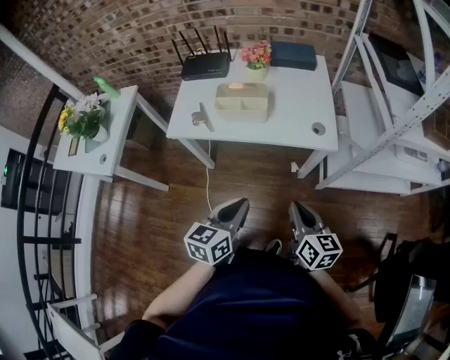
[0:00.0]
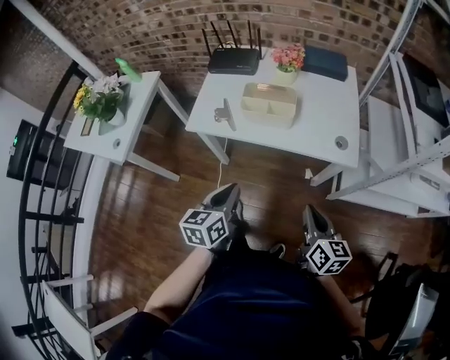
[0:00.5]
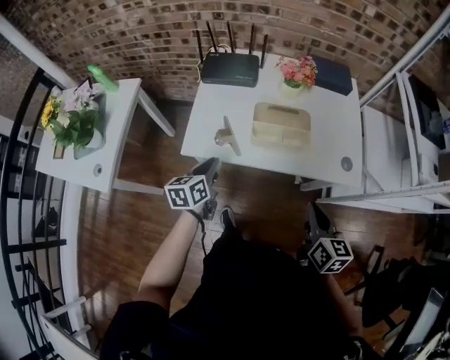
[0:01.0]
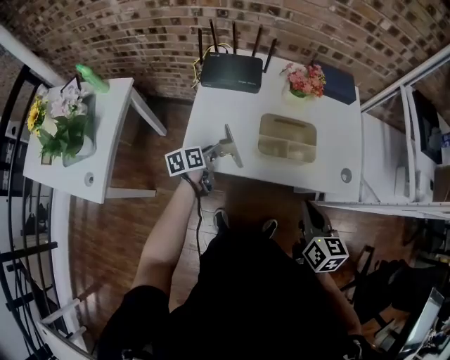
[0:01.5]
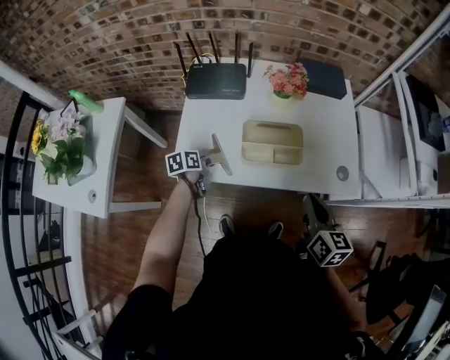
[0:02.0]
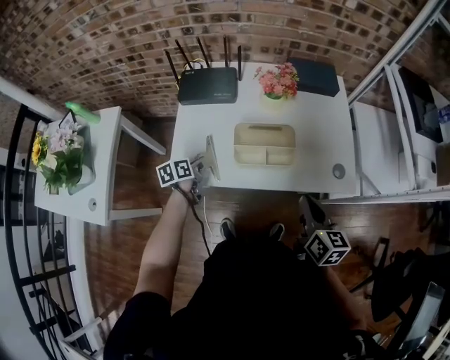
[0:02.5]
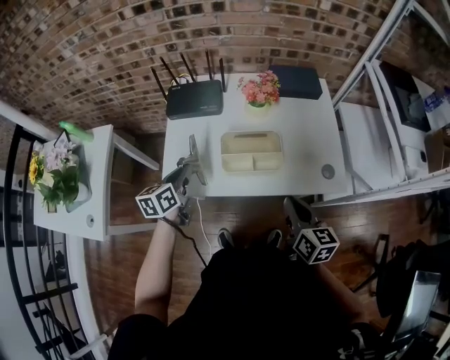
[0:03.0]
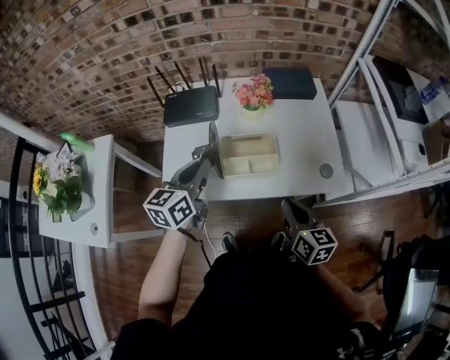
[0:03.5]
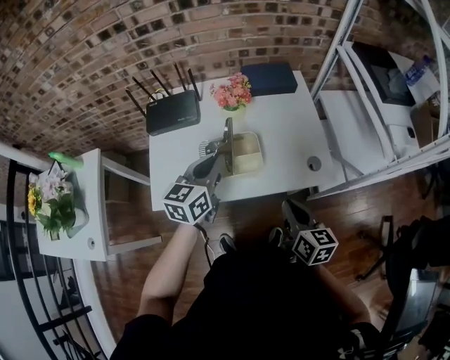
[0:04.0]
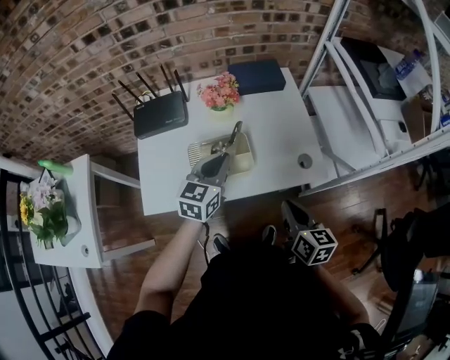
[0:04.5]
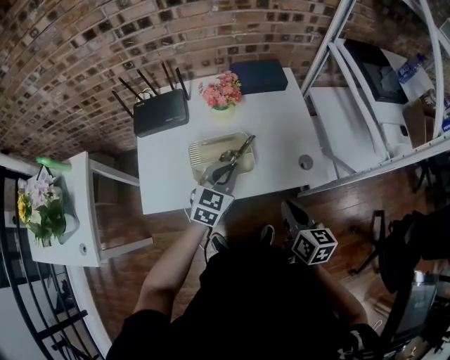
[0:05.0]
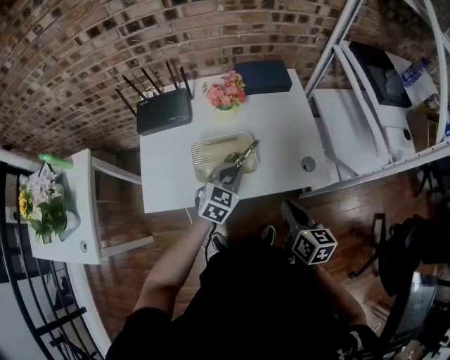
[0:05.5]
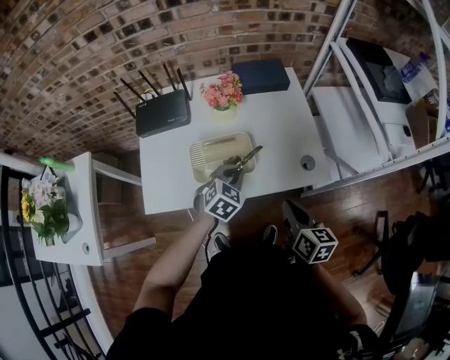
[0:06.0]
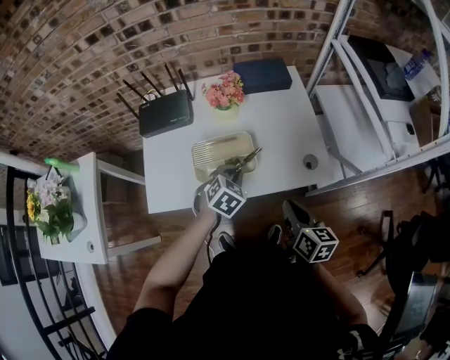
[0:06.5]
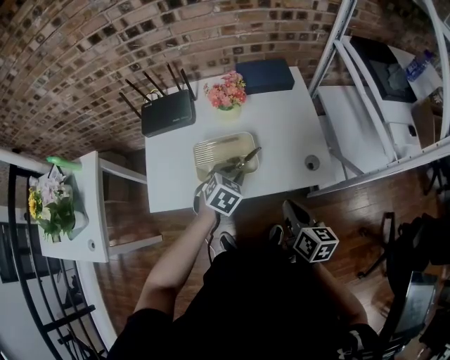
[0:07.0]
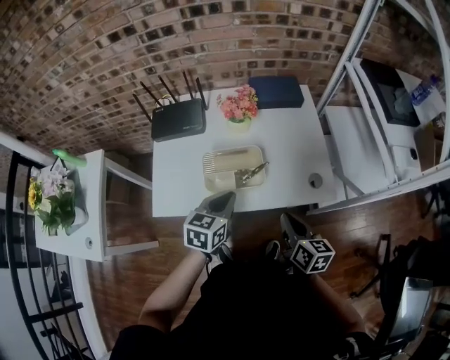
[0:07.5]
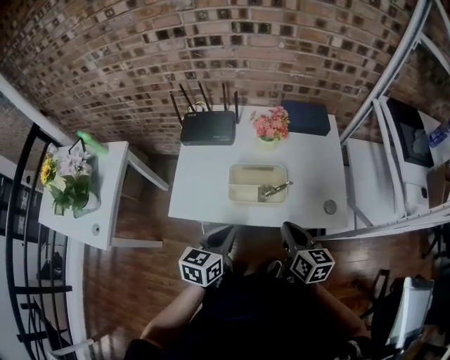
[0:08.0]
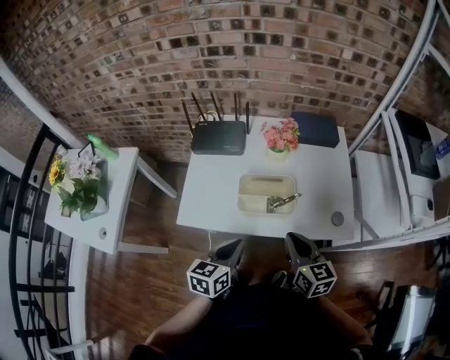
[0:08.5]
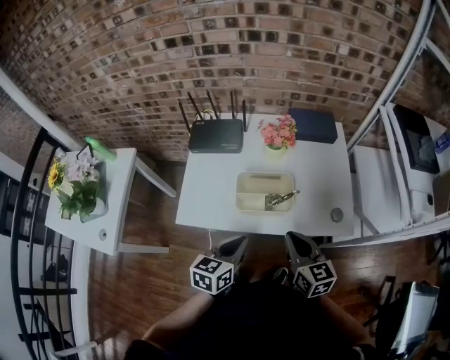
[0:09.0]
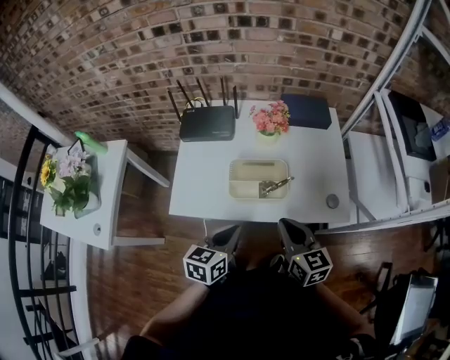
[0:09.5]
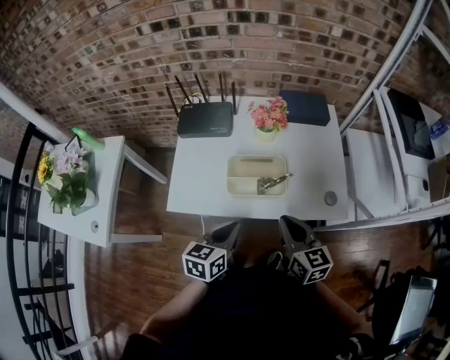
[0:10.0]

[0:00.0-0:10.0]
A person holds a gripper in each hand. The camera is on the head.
0:00.0 to 0:02.0: The left gripper goes about 50 cm forward, to the left and downward, and rotates about 40 degrees. Meanwhile the right gripper is displaced forward and to the left by about 25 cm.
0:02.0 to 0:04.0: The left gripper goes some 30 cm upward and to the right, and tilts its fingers some 30 degrees upward. The right gripper ends up some 5 cm from where it was.
0:04.0 to 0:06.0: The left gripper shifts approximately 15 cm downward and to the right, and points its fingers roughly 30 degrees further downward.
0:06.0 to 0:08.0: The right gripper shifts about 10 cm to the left. Meanwhile the left gripper heads backward, to the left and upward, covering some 20 cm, rotates around the line of its fingers by roughly 50 degrees, counterclockwise from behind, and opens, then closes again.
0:08.0 to 0:10.0: The grippers move only a little.

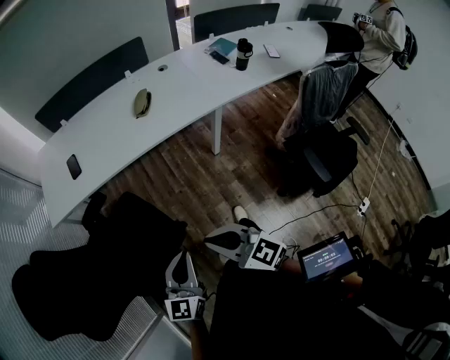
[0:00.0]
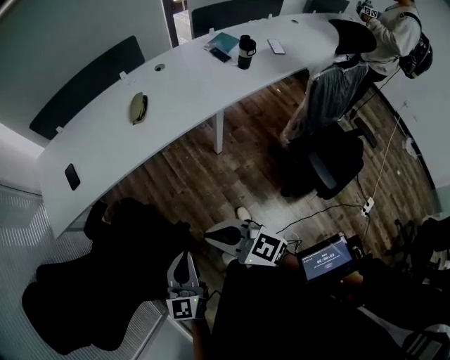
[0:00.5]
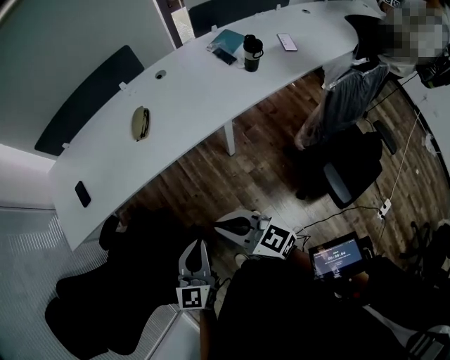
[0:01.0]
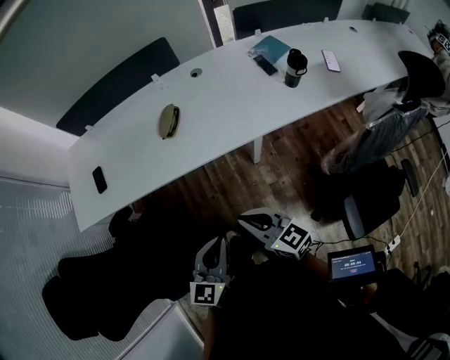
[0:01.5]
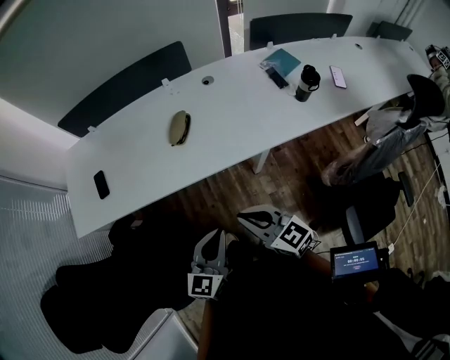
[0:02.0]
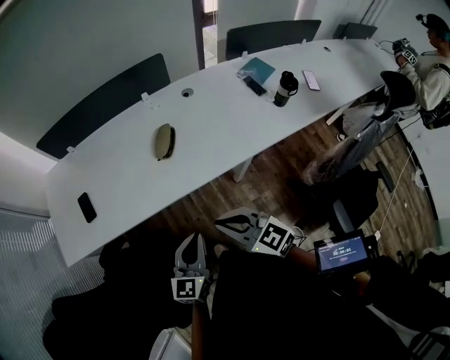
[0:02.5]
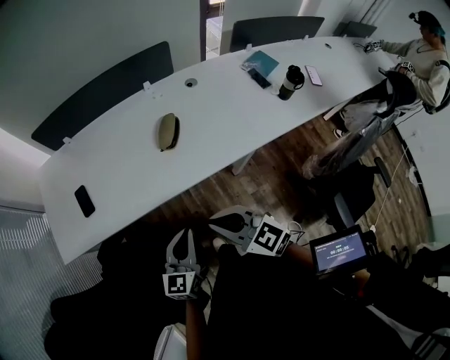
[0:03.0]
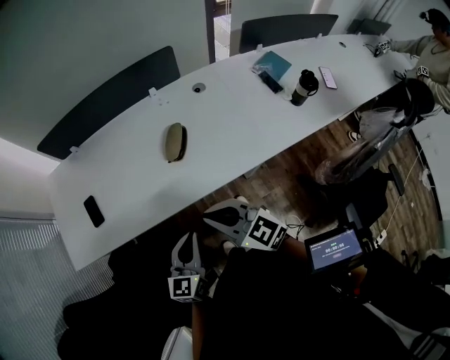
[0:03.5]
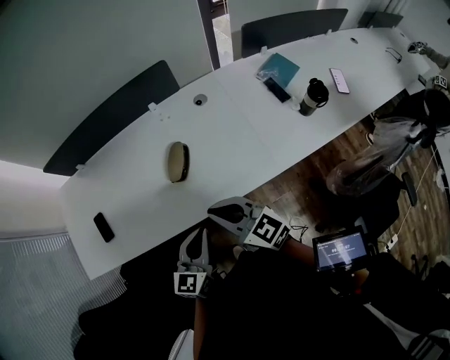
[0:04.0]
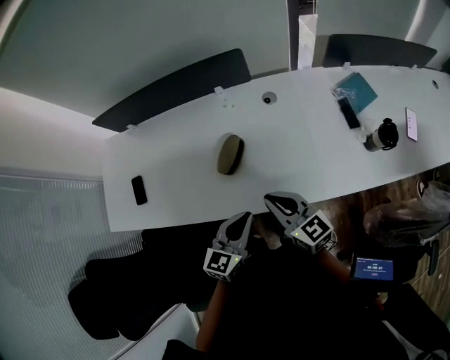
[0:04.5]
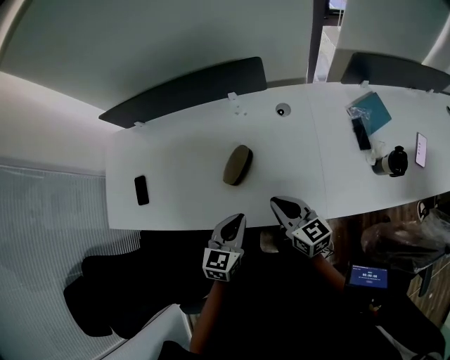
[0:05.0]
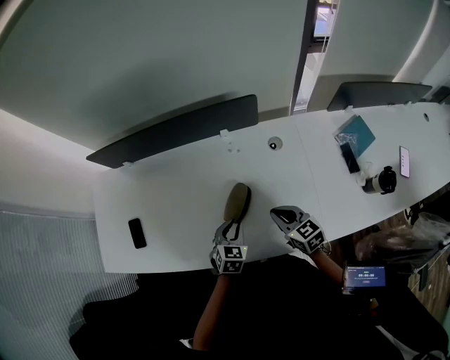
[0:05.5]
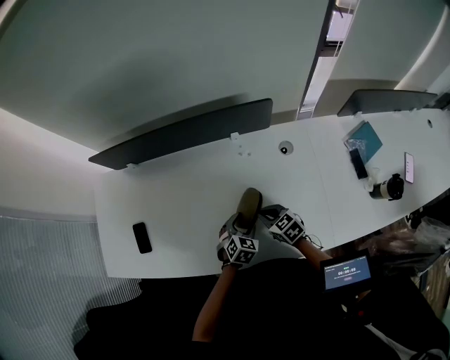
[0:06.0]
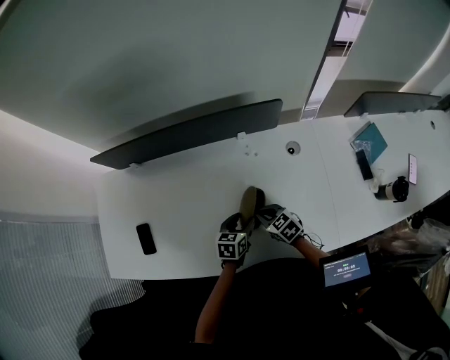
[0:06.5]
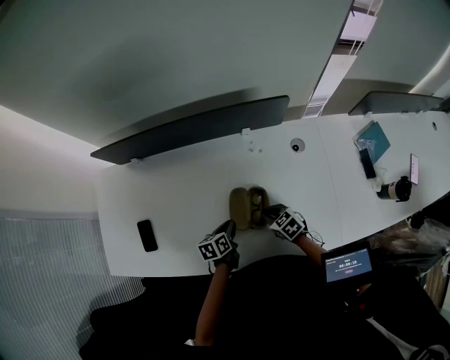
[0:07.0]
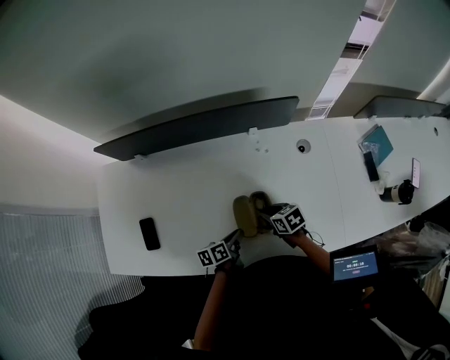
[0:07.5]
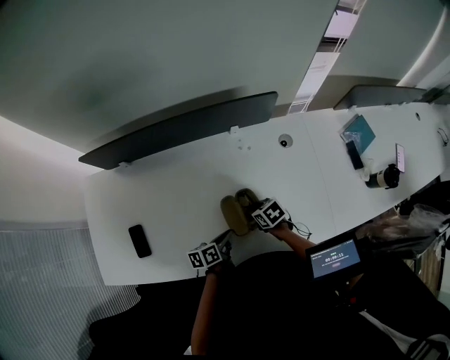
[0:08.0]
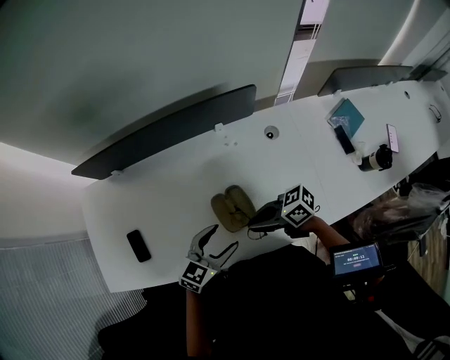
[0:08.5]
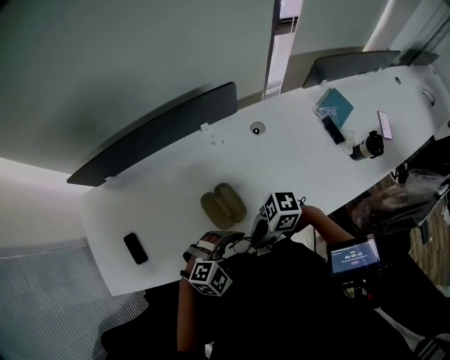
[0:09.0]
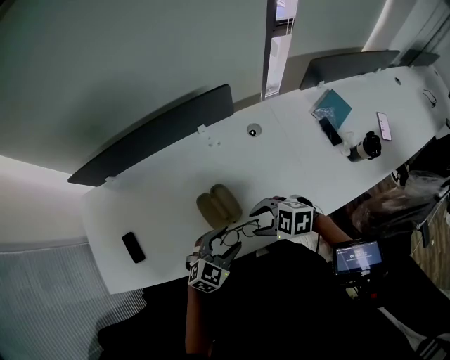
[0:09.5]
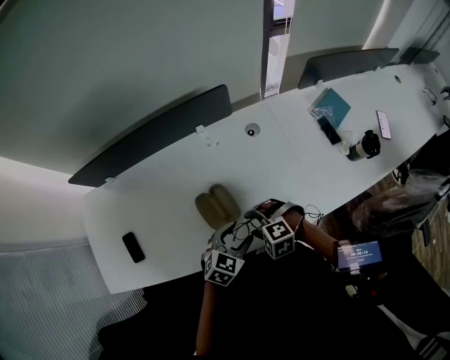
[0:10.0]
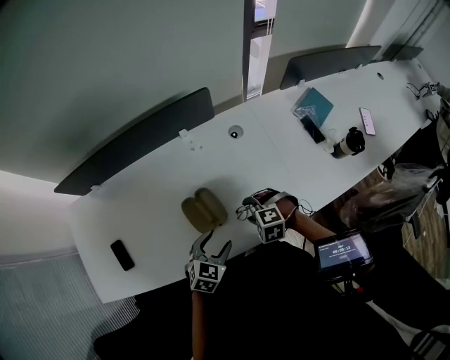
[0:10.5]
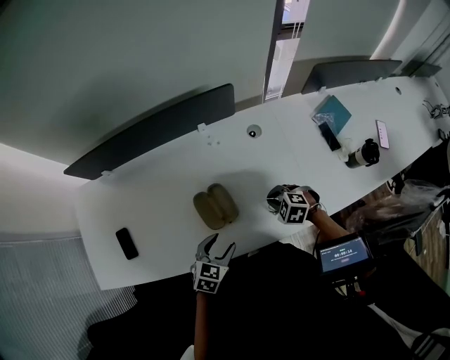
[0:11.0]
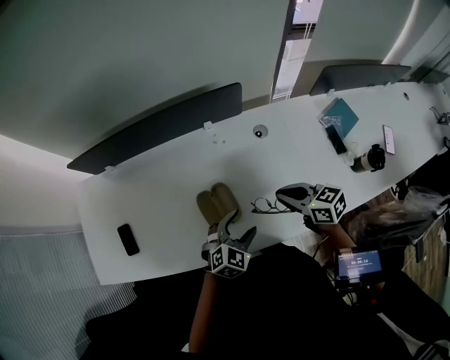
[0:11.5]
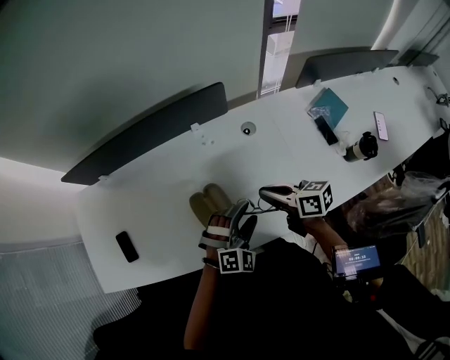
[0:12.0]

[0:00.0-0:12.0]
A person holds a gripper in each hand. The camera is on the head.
0:00.0 to 0:02.0: Both grippers move forward and to the right, about 35 cm.
0:02.0 to 0:04.0: Both grippers move forward, about 20 cm.
0:04.0 to 0:06.0: The grippers both shift forward and downward by roughly 30 cm. The right gripper rotates about 30 degrees. The left gripper tips its fingers downward by roughly 40 degrees, and opens up.
0:06.0 to 0:08.0: The right gripper travels to the left by approximately 5 cm, and turns by about 20 degrees; the left gripper travels to the left by roughly 10 cm, twists approximately 60 degrees counterclockwise, seen from behind, and closes its fingers.
0:08.0 to 0:10.0: The left gripper changes place by roughly 20 cm, rolls clockwise, seen from behind, by some 70 degrees, and opens up; the right gripper changes place by some 20 cm, rotates around the line of its fingers by about 70 degrees, counterclockwise from behind, and opens its fingers.
0:10.0 to 0:12.0: The left gripper shifts by roughly 10 cm, and twists approximately 40 degrees clockwise, seen from behind, while the right gripper moves roughly 15 cm, twists roughly 80 degrees clockwise, seen from behind, and closes.

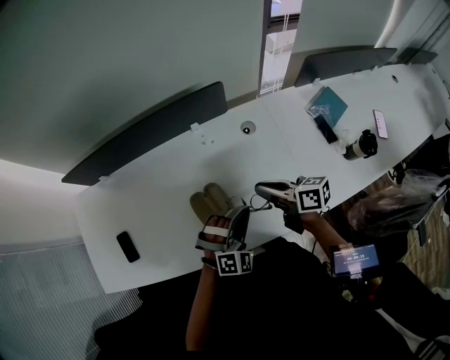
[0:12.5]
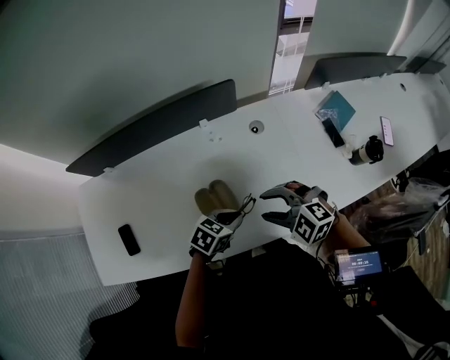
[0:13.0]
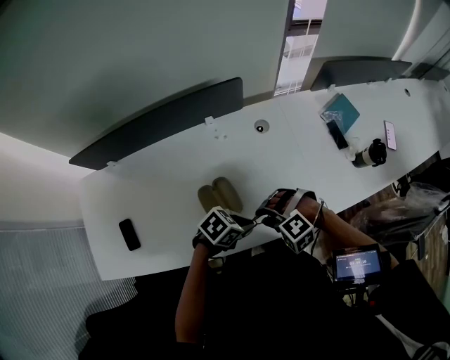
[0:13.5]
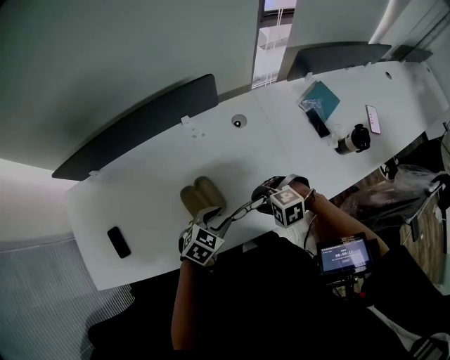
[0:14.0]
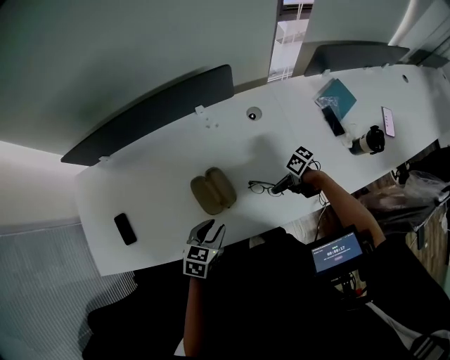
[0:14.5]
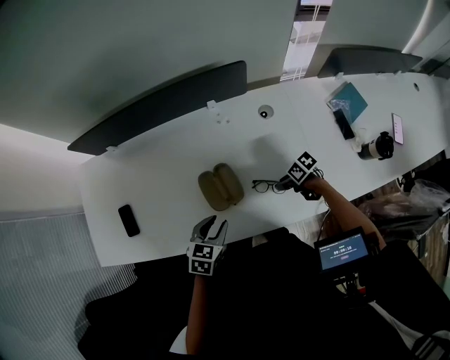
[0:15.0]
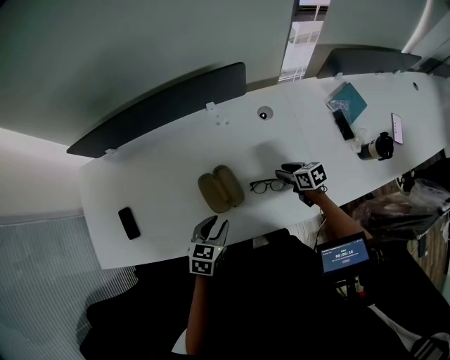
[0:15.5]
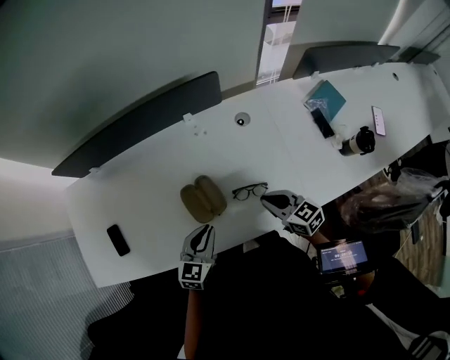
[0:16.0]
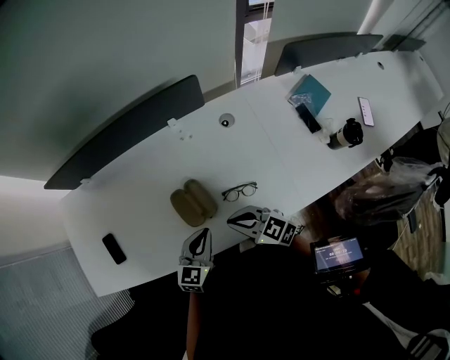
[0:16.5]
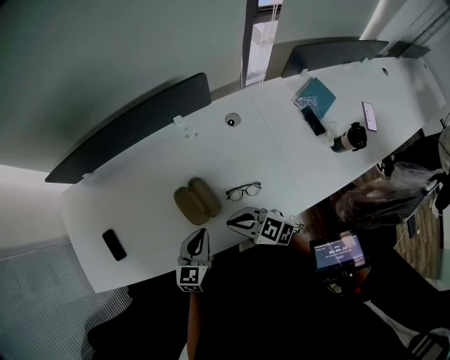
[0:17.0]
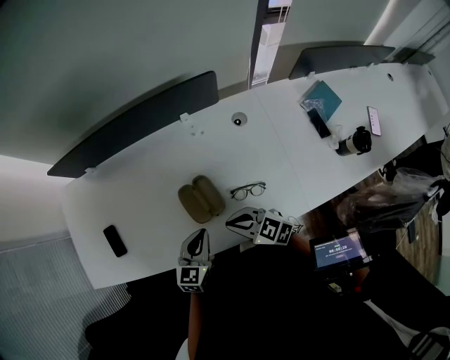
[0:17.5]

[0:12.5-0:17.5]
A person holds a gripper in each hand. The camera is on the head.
0:12.5 to 0:15.0: The left gripper changes place by some 15 cm, rotates around the line of its fingers by approximately 70 degrees, counterclockwise from behind, and opens. Meanwhile the right gripper is displaced downward by about 25 cm, angles its fingers downward, by roughly 30 degrees, and opens up.
0:15.0 to 0:17.5: The right gripper heads upward, covering roughly 15 cm, rotates around the line of its fingers by about 50 degrees, counterclockwise from behind, and closes up. Meanwhile the left gripper turns by some 20 degrees, and closes its fingers.
